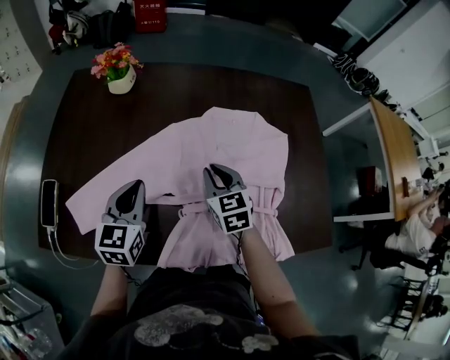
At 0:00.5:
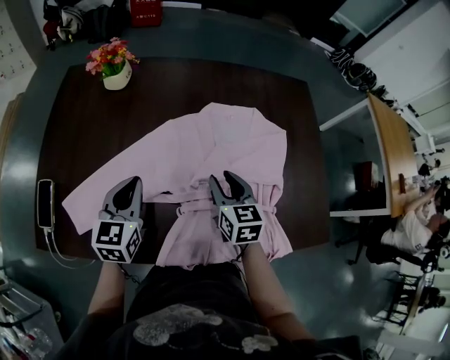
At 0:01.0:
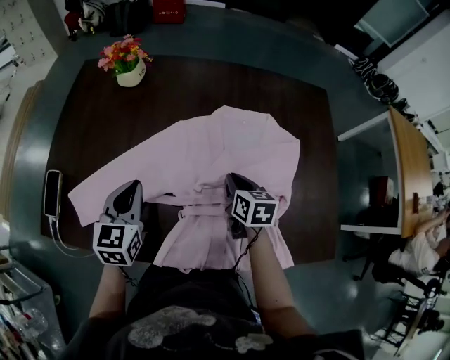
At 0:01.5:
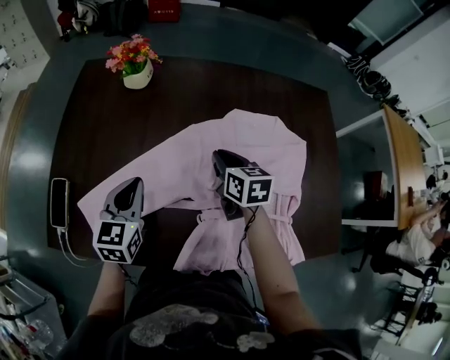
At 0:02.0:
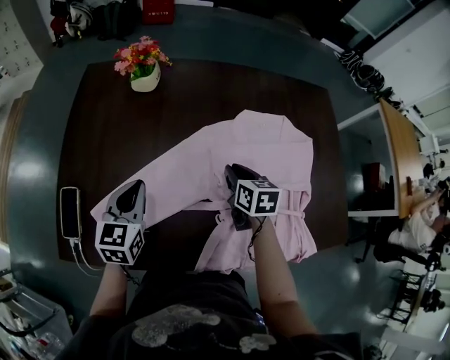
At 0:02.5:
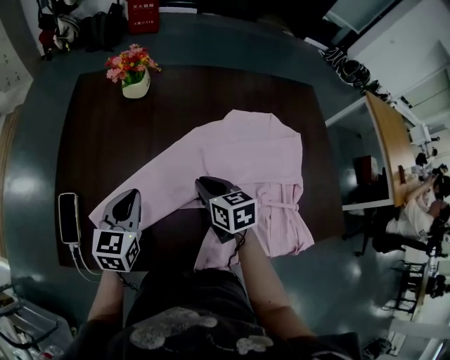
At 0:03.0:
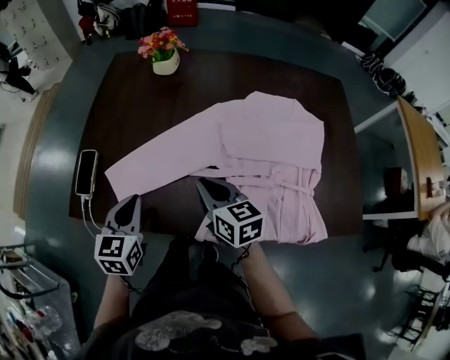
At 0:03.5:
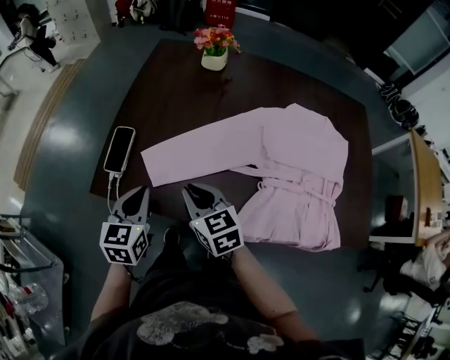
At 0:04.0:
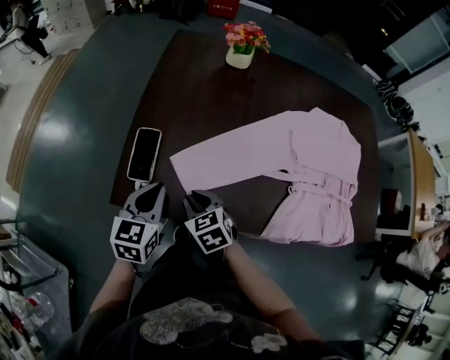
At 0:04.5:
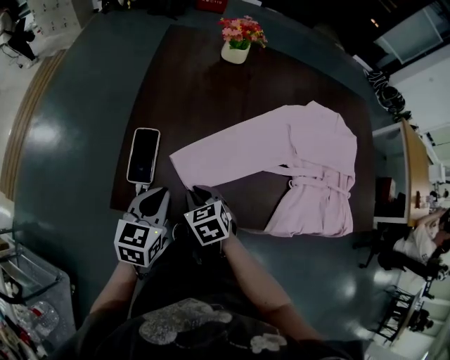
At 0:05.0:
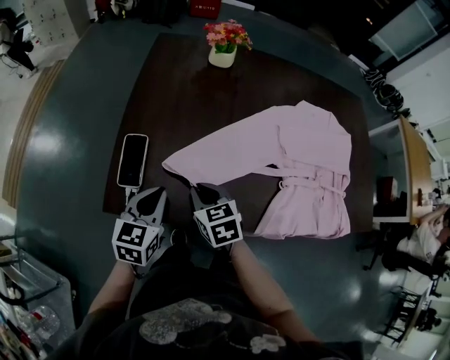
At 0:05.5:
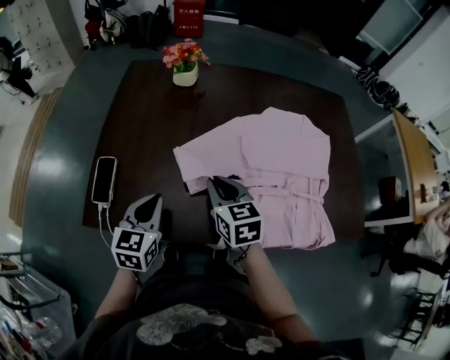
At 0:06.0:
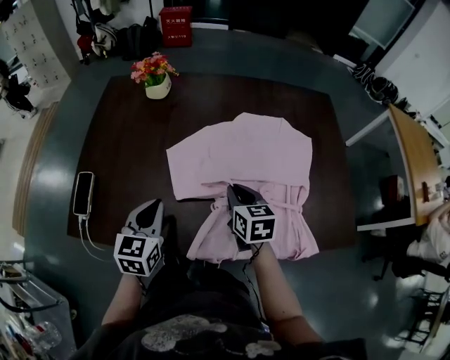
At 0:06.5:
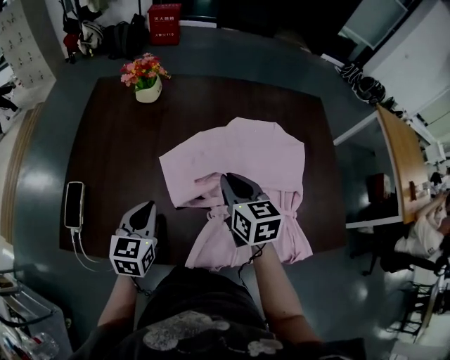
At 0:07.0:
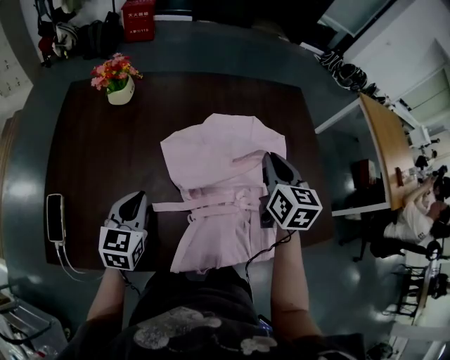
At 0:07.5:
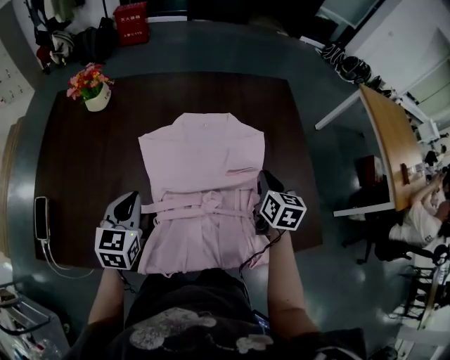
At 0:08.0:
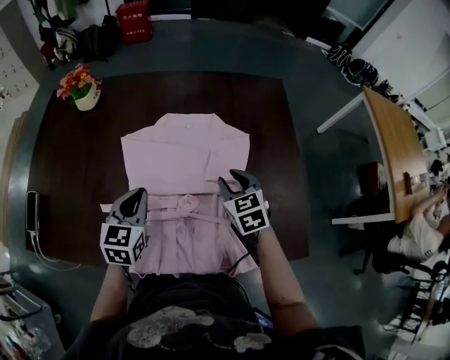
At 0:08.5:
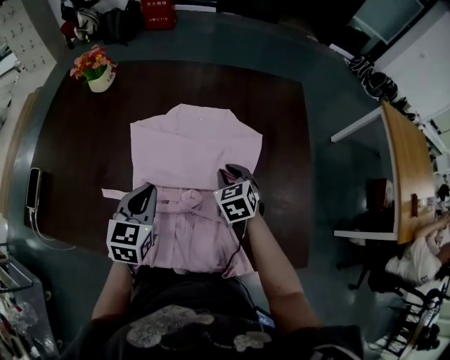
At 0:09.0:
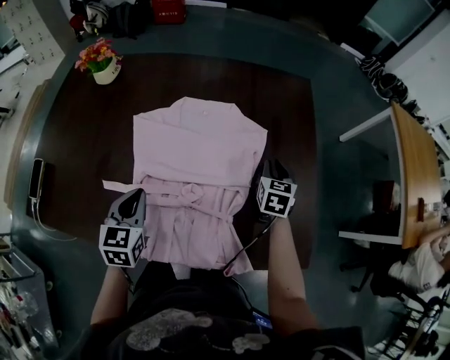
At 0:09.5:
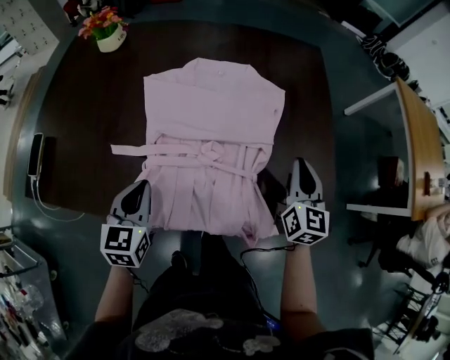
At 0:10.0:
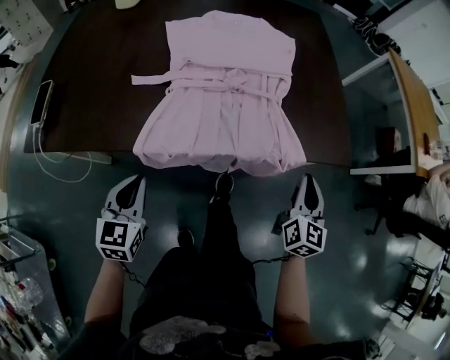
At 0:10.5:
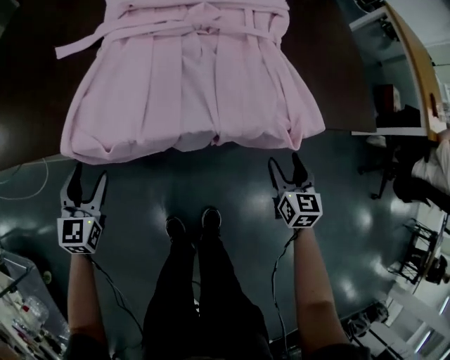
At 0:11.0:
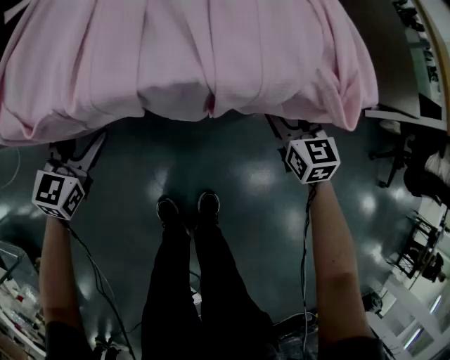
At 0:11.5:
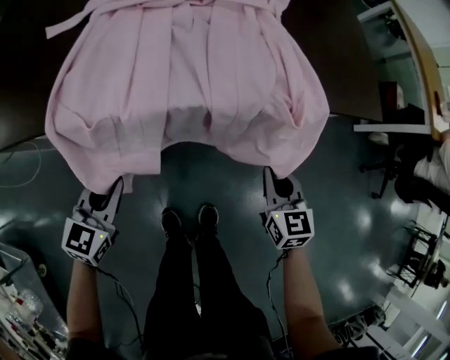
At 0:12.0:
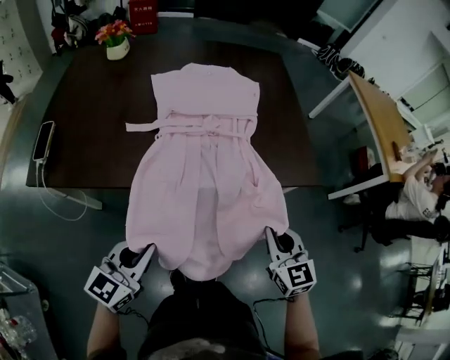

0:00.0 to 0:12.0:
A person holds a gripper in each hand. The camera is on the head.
0:00.0 to 0:02.0: The right gripper shifts by approximately 5 cm, and turns by about 30 degrees. The left gripper goes roughly 10 cm to the left.
0:02.0 to 0:04.0: The left gripper heads to the left and backward, covering roughly 25 cm; the right gripper goes some 40 cm to the left, and swivels approximately 40 degrees.
0:04.0 to 0:06.0: The right gripper travels to the right by some 40 cm, and changes its angle by some 30 degrees, while the left gripper heads to the right, covering approximately 25 cm.
0:06.0 to 0:08.0: The right gripper is displaced to the right by about 25 cm, and swivels roughly 20 degrees; the left gripper moves to the right and forward, about 25 cm.
0:08.0 to 0:10.0: Both grippers move backward, some 35 cm. The right gripper changes its angle by about 50 degrees, and closes up.
0:10.0 to 0:12.0: The right gripper heads backward and to the left, covering approximately 10 cm, moves approximately 30 cm downward and comes back, changes its angle by some 30 degrees, and opens and closes again, while the left gripper heads backward and to the right, covering approximately 10 cm, reaches about 25 cm downward, then returns, turns by some 30 degrees, and opens, then closes once more.

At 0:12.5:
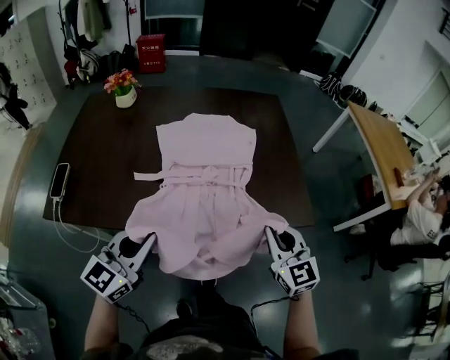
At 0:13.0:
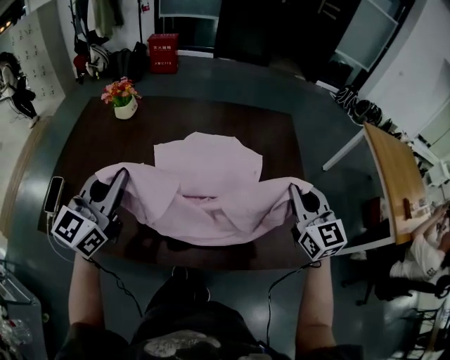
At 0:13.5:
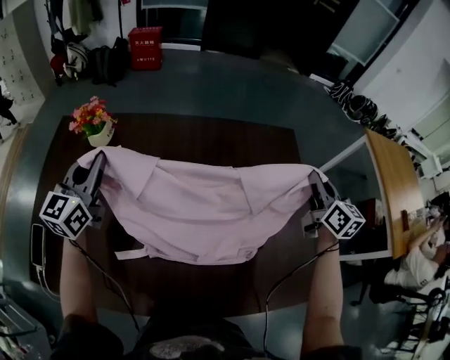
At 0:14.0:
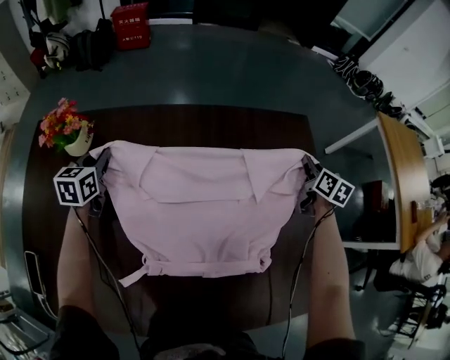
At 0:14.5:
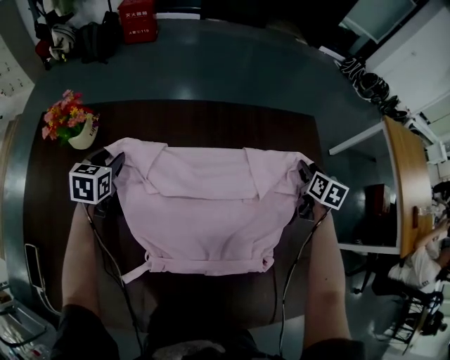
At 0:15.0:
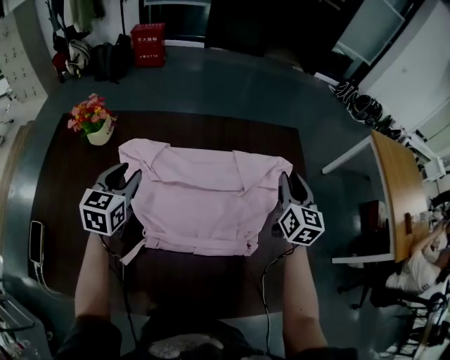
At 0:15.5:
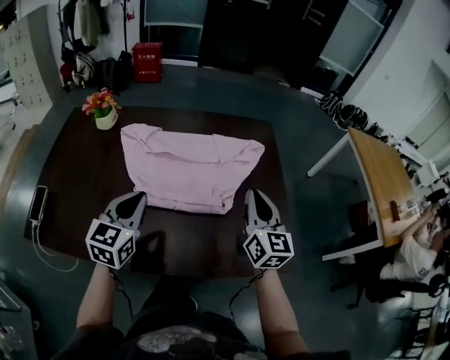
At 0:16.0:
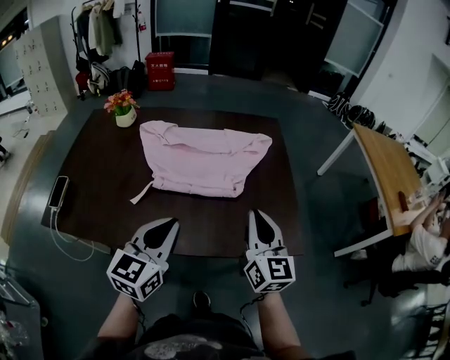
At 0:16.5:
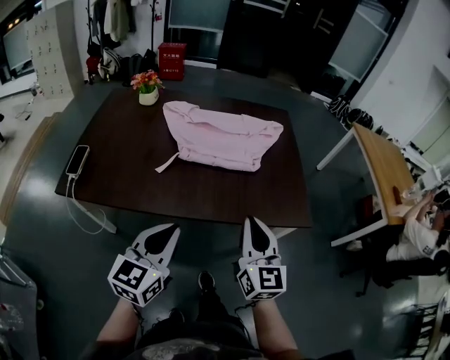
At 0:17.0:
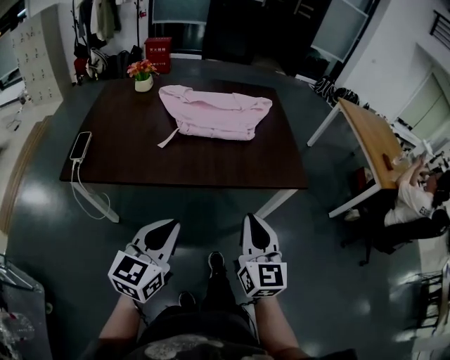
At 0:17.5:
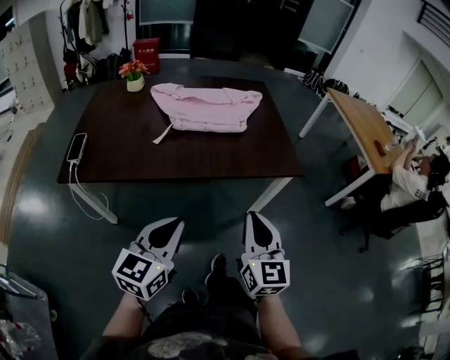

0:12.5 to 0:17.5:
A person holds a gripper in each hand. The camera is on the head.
0:12.5 to 0:15.0: Both grippers are carried forward, some 50 cm. The left gripper changes its angle by roughly 30 degrees, and opens; the right gripper swivels some 30 degrees, and opens.
0:15.0 to 0:17.5: The two grippers travel together, backward, approximately 70 cm. The left gripper turns by approximately 20 degrees, and closes up; the right gripper closes.

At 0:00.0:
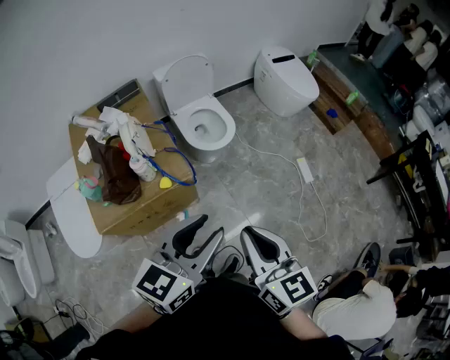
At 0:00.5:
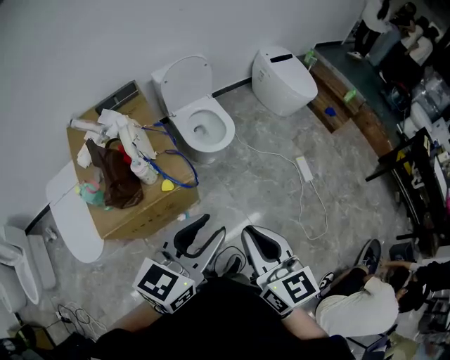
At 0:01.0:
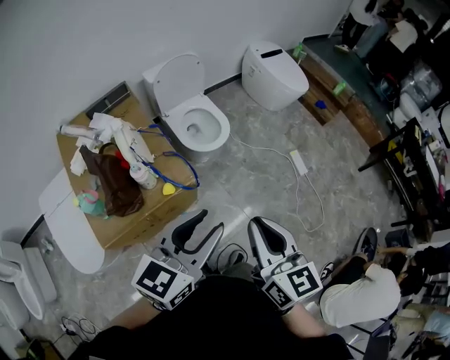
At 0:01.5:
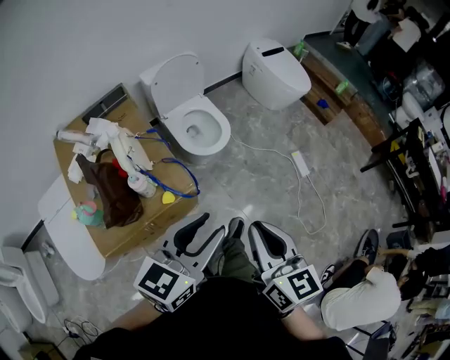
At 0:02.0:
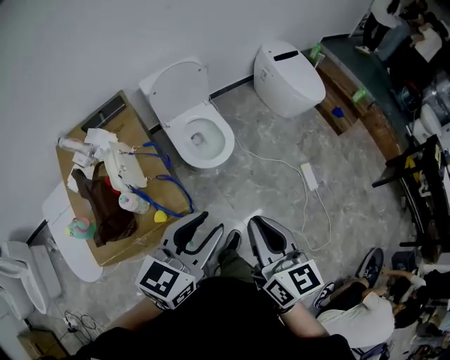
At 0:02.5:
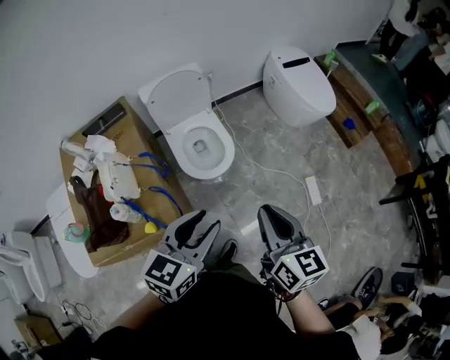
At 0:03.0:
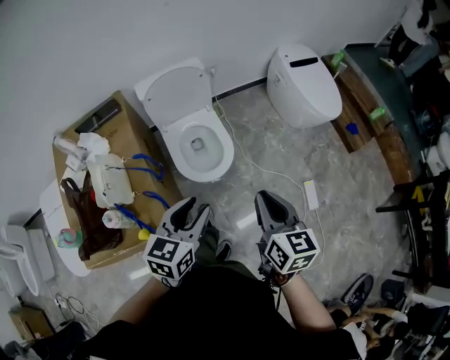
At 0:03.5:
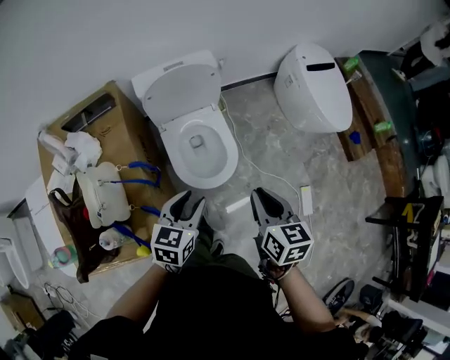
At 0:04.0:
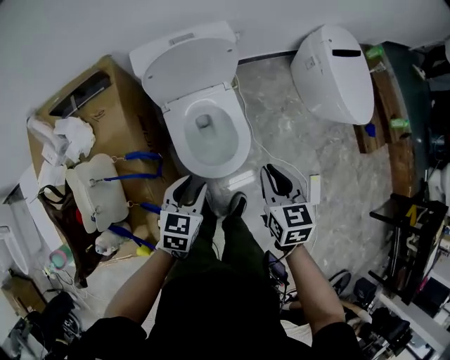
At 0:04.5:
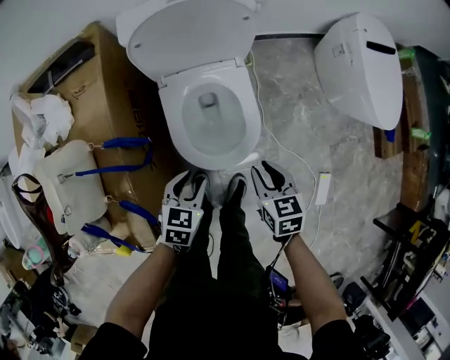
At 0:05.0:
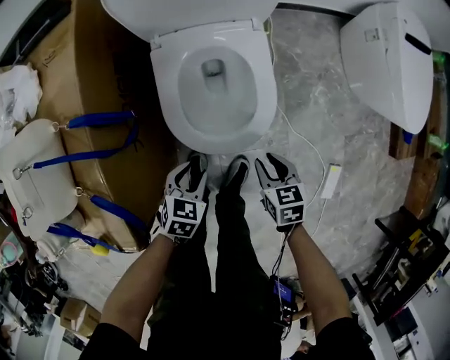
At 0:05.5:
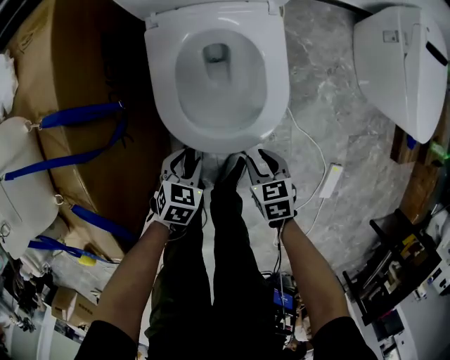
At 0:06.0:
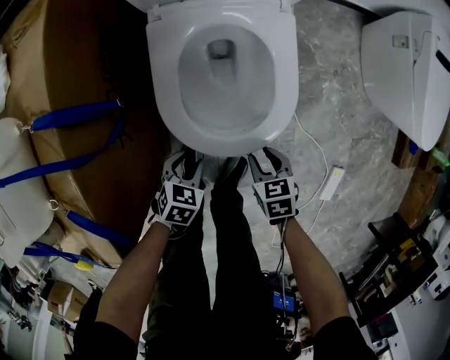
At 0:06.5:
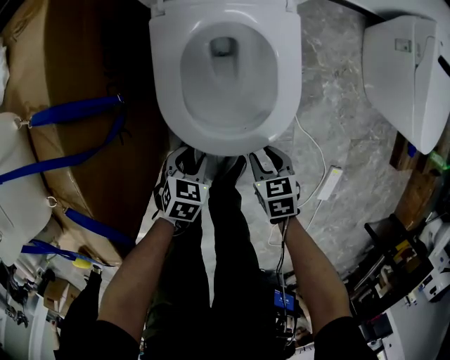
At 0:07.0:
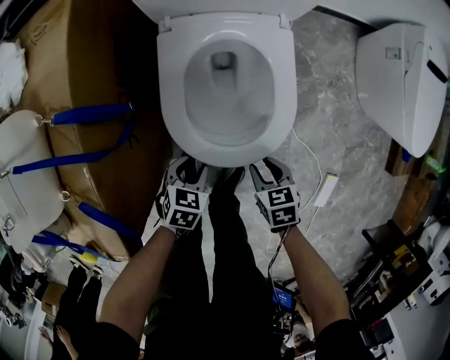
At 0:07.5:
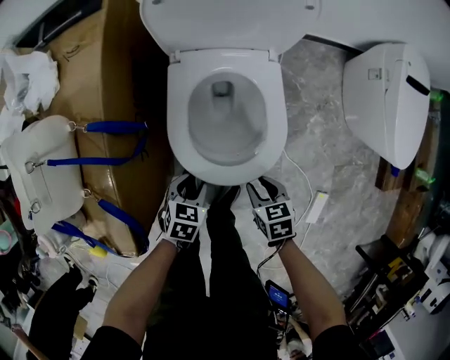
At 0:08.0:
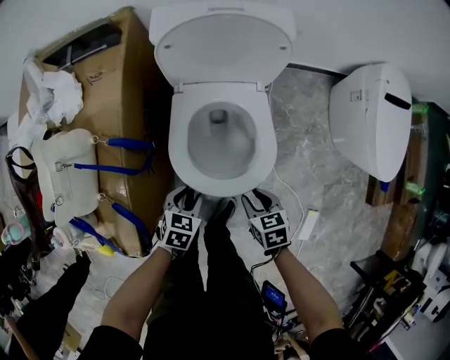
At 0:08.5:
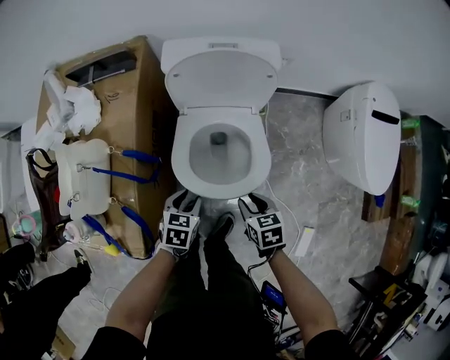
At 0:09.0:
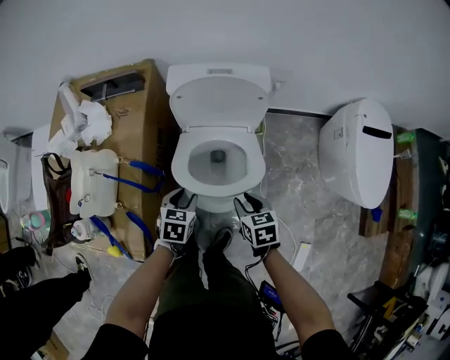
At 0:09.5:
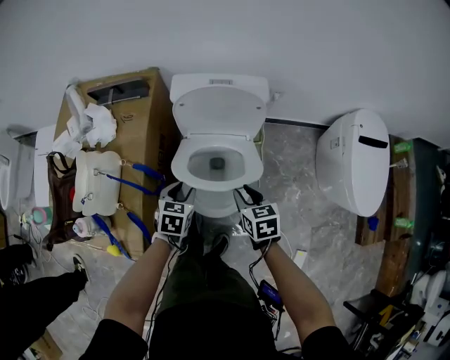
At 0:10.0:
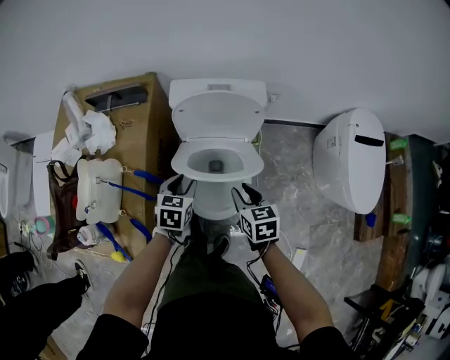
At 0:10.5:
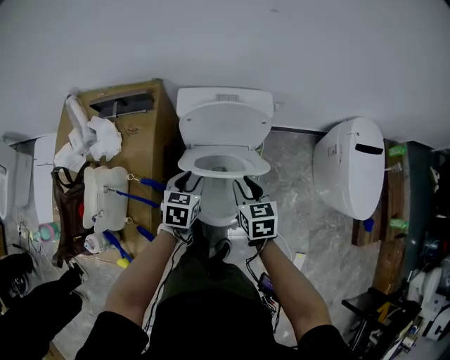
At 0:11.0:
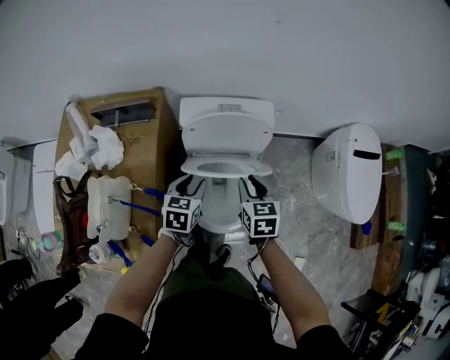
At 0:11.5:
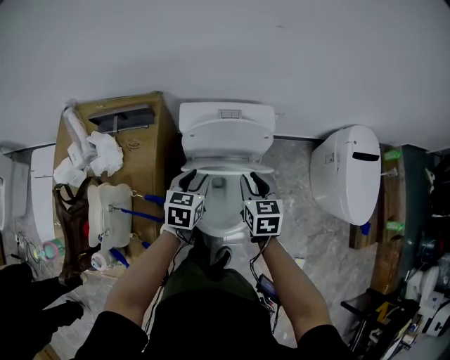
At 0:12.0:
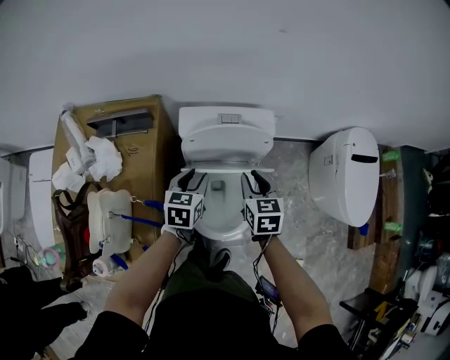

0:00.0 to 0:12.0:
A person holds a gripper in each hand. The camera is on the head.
0:00.0 to 0:02.0: Both grippers move forward, approximately 20 cm.
0:02.0 to 0:04.0: Both grippers travel together forward and downward, approximately 50 cm. The left gripper rotates some 30 degrees. Meanwhile the right gripper rotates some 30 degrees.
0:04.0 to 0:06.0: The two grippers go roughly 40 cm downward. The right gripper turns by roughly 40 degrees, and opens, while the left gripper swivels roughly 30 degrees.
0:06.0 to 0:08.0: The two grippers go some 20 cm upward.
0:08.0 to 0:10.0: Both grippers move upward and forward, approximately 25 cm.
0:10.0 to 0:12.0: Both grippers move forward and upward, approximately 15 cm.
